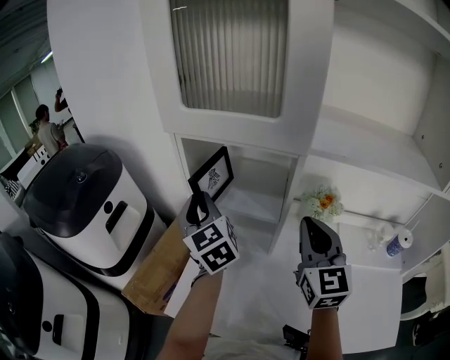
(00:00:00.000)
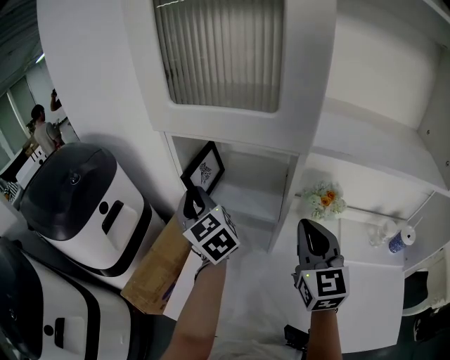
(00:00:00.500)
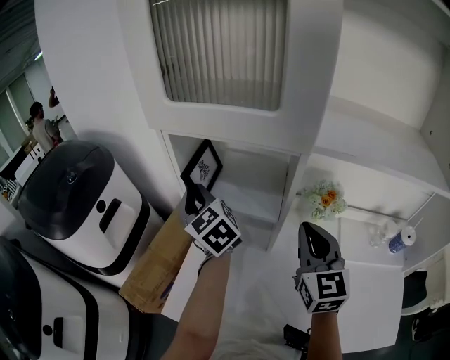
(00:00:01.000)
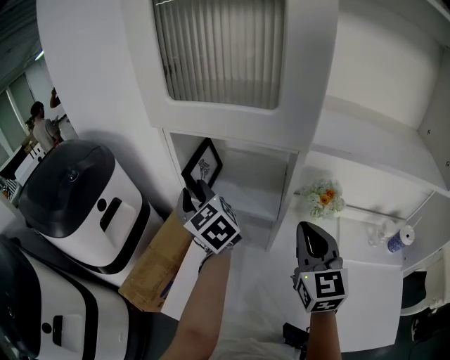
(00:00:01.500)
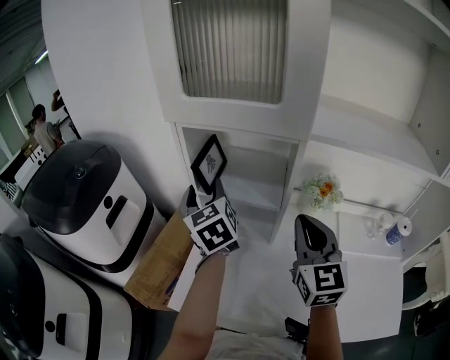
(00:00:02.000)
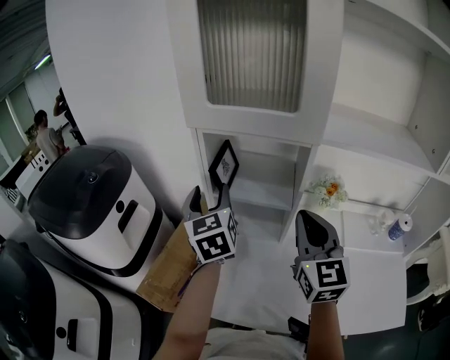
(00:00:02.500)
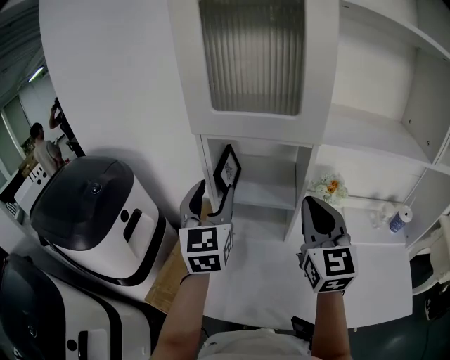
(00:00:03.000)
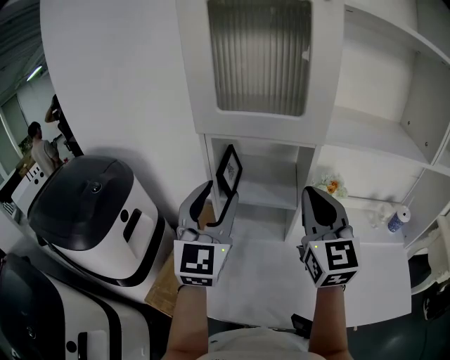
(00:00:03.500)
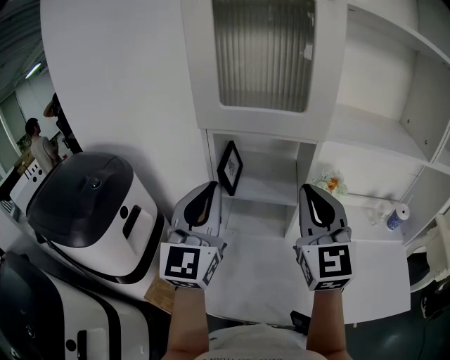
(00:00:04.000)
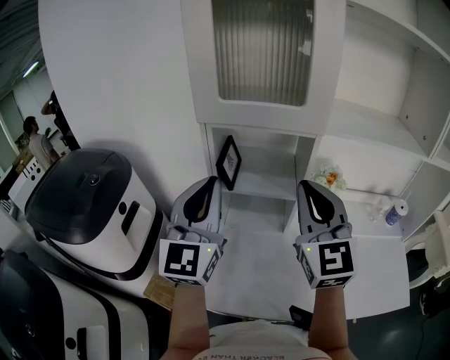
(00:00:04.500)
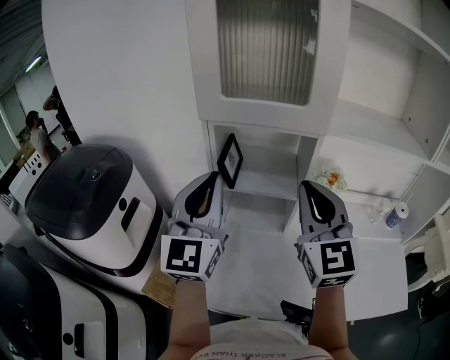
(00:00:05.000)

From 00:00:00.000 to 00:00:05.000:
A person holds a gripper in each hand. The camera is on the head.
From 00:00:00.000 to 00:00:02.500: The left gripper opens. Meanwhile the right gripper travels to the left by roughly 5 cm.
From 00:00:02.500 to 00:00:05.000: The left gripper goes some 15 cm upward and backward, rotates roughly 40 degrees, and closes up; the right gripper is displaced upward by some 10 cm.

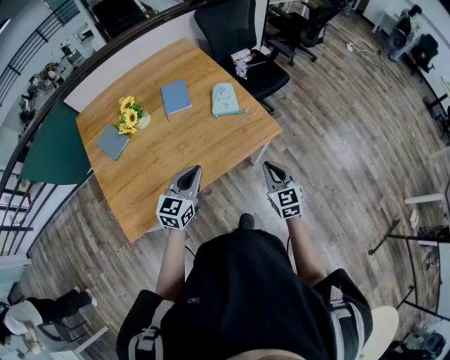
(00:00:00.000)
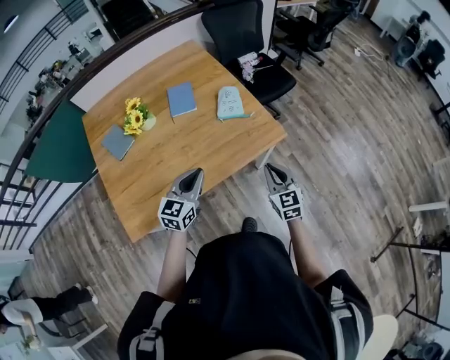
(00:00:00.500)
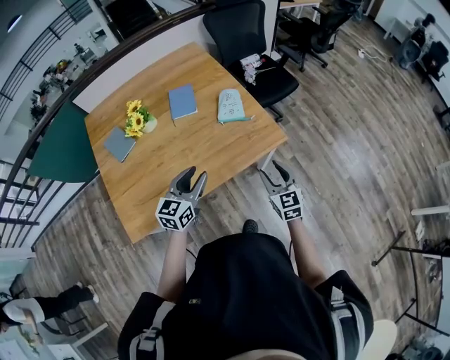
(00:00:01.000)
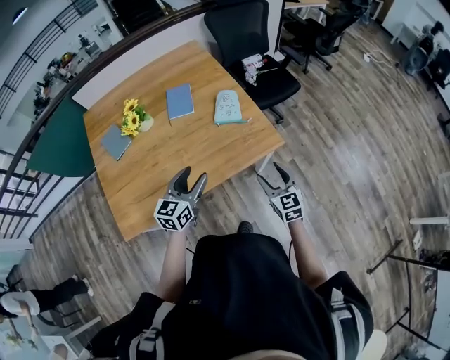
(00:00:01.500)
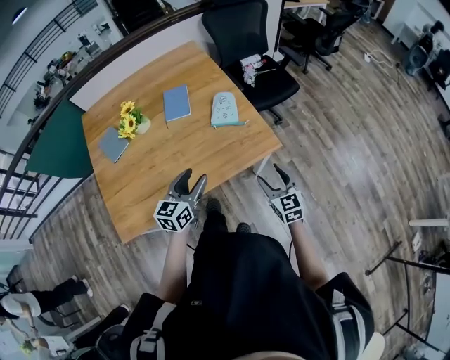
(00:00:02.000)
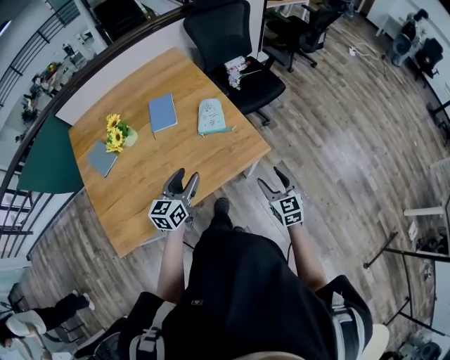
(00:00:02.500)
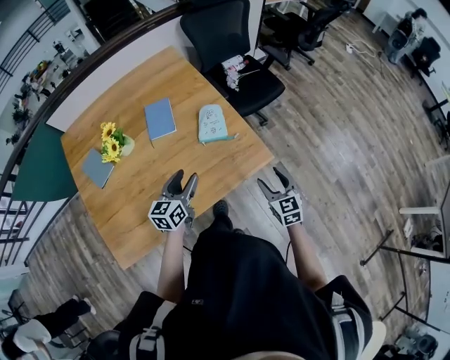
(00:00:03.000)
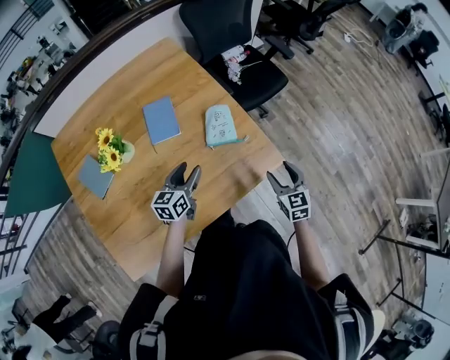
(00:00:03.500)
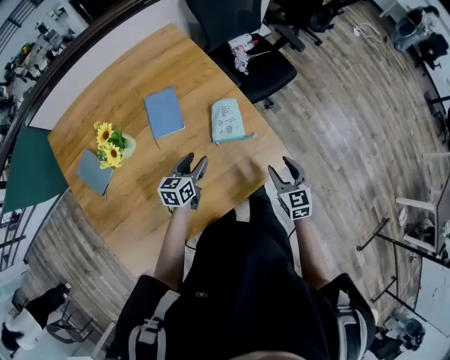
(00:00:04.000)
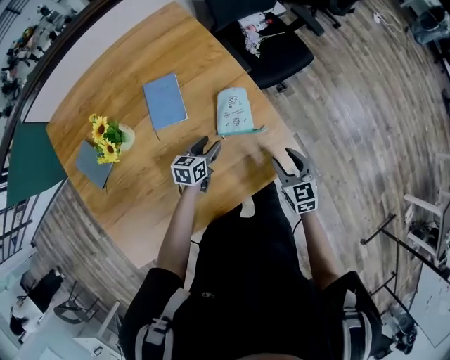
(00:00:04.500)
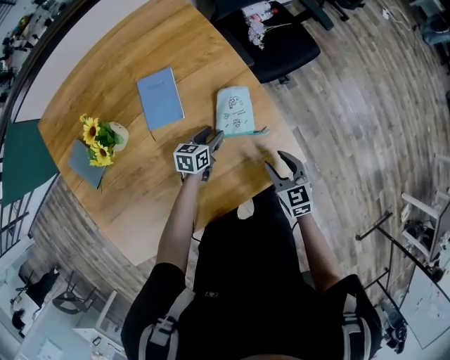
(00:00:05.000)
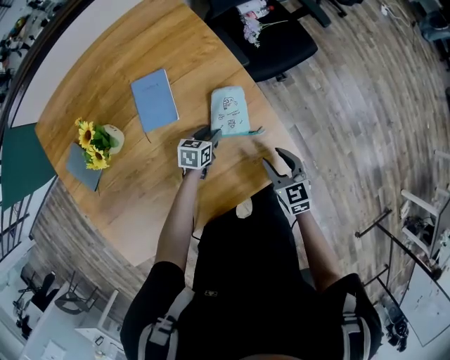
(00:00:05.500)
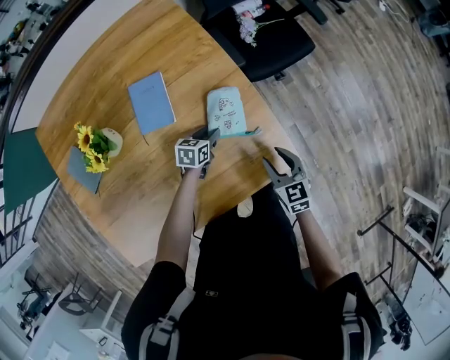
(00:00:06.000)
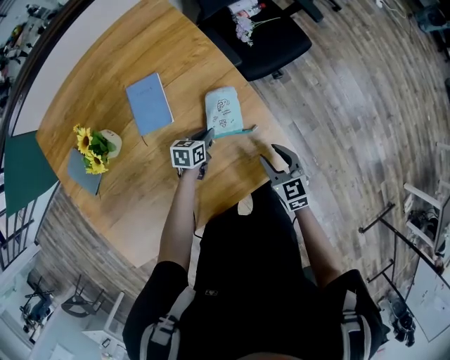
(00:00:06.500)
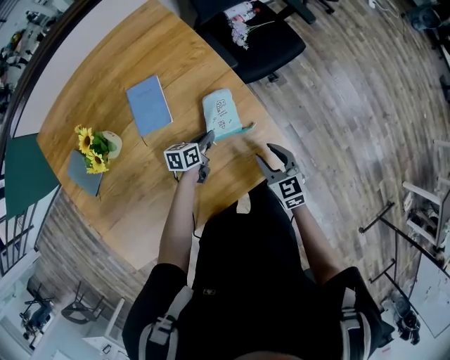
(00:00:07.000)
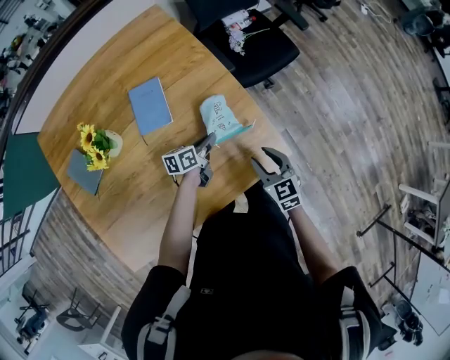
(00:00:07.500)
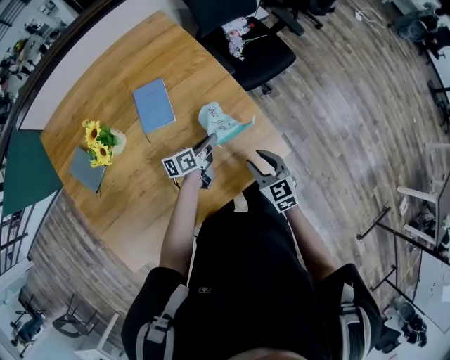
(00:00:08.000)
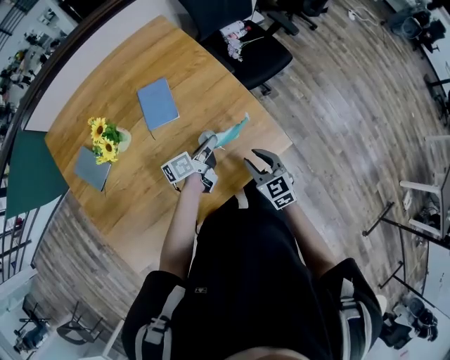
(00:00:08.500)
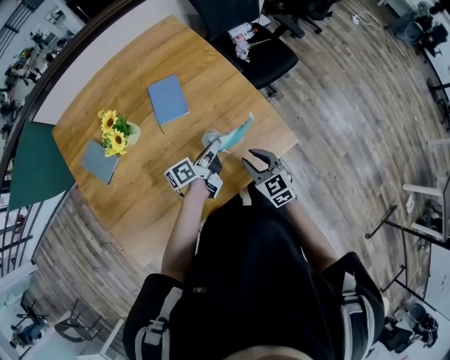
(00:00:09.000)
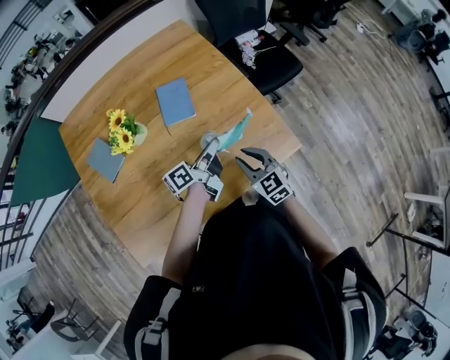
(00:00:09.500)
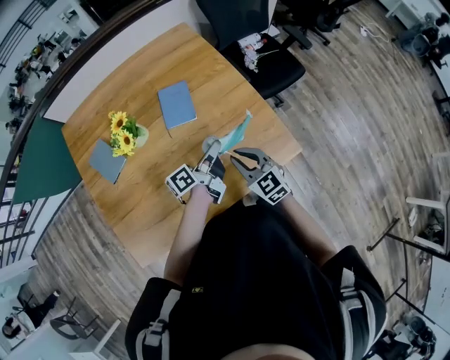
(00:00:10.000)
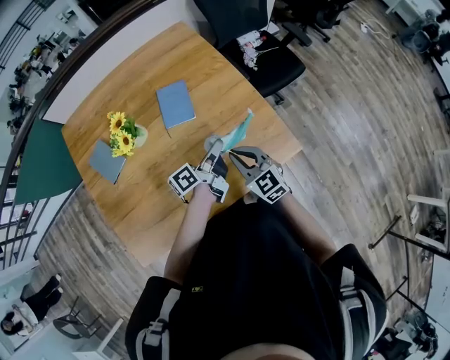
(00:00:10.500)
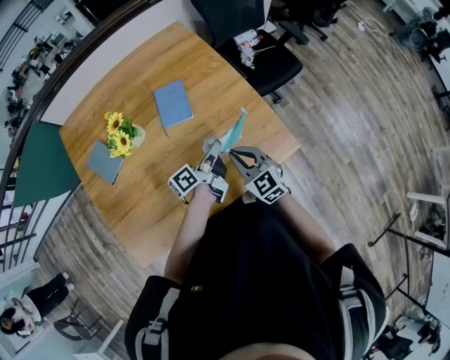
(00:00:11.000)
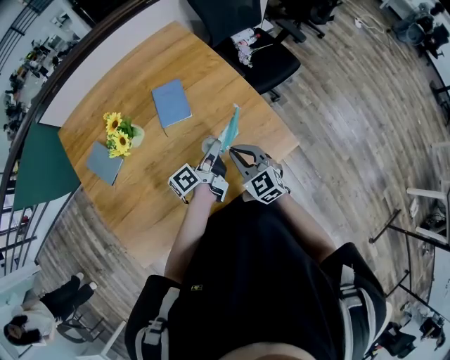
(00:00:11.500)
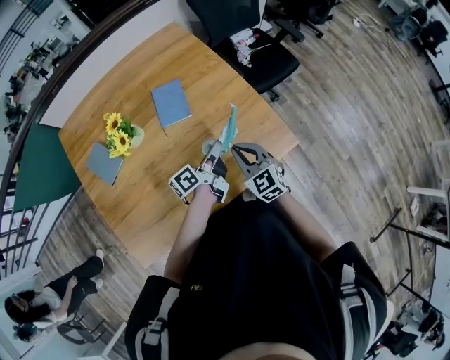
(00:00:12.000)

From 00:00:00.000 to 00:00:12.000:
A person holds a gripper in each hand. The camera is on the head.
From 00:00:00.000 to 00:00:02.000: The left gripper moves roughly 5 cm, and opens. The right gripper moves to the right and forward, approximately 10 cm, and opens up.
From 00:00:02.000 to 00:00:04.000: The right gripper shifts some 15 cm forward; the left gripper goes about 25 cm forward and downward.
From 00:00:04.000 to 00:00:06.000: The right gripper goes some 10 cm downward and forward. The left gripper travels downward, forward and to the right by about 20 cm, and changes its angle by roughly 20 degrees.
From 00:00:06.000 to 00:00:08.000: The right gripper goes approximately 5 cm backward. Meanwhile the left gripper goes about 10 cm upward, turns by roughly 40 degrees, and closes up.
From 00:00:08.000 to 00:00:10.000: The left gripper heads upward, backward and to the left, covering approximately 15 cm, and turns by roughly 30 degrees. The right gripper is displaced to the left and upward by roughly 15 cm, and closes up.
From 00:00:10.000 to 00:00:12.000: The grippers move only a little.

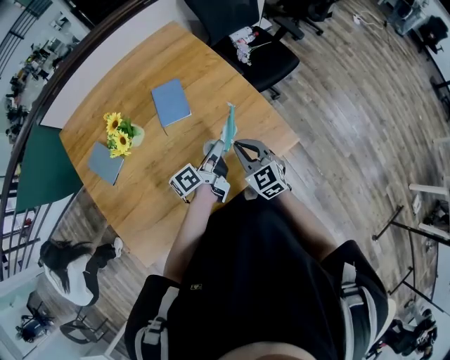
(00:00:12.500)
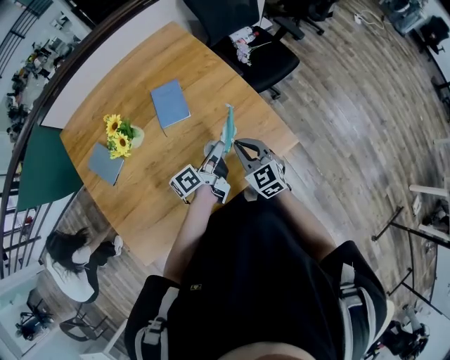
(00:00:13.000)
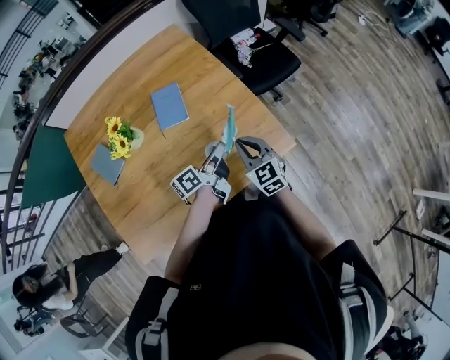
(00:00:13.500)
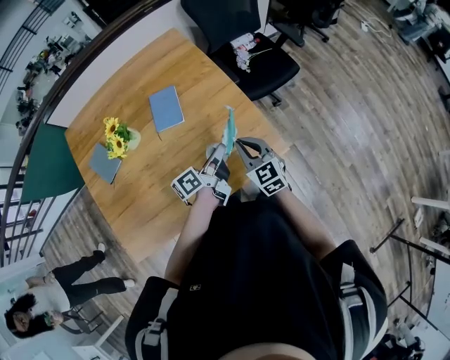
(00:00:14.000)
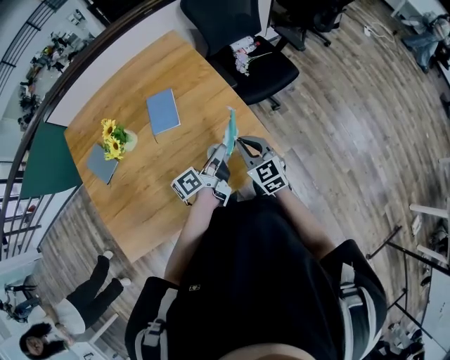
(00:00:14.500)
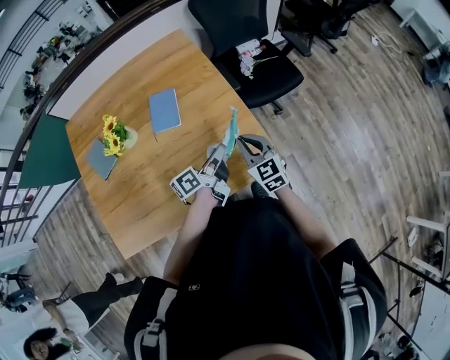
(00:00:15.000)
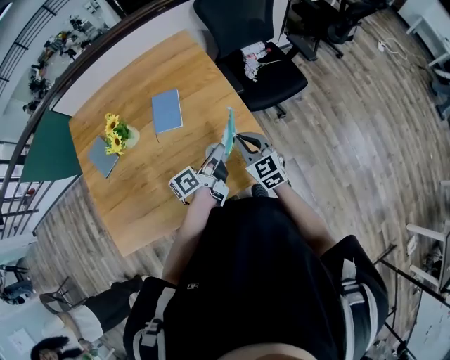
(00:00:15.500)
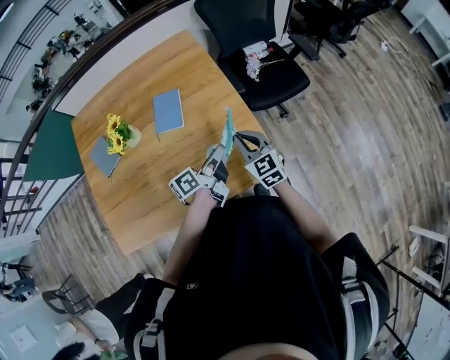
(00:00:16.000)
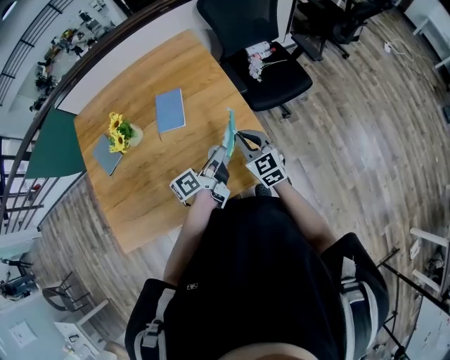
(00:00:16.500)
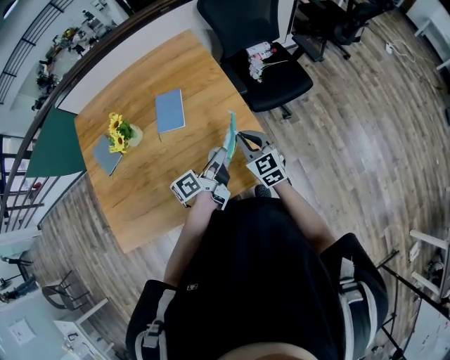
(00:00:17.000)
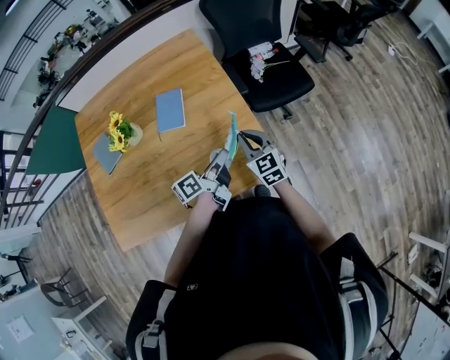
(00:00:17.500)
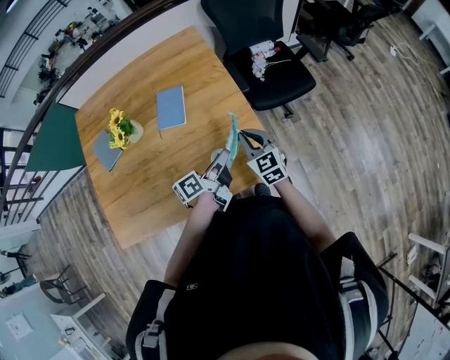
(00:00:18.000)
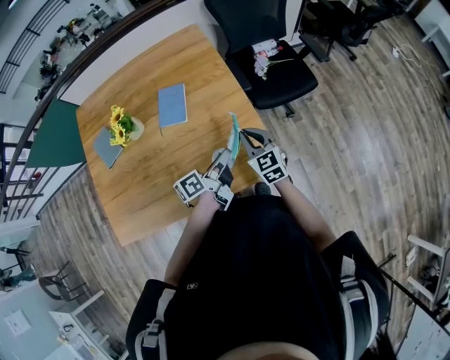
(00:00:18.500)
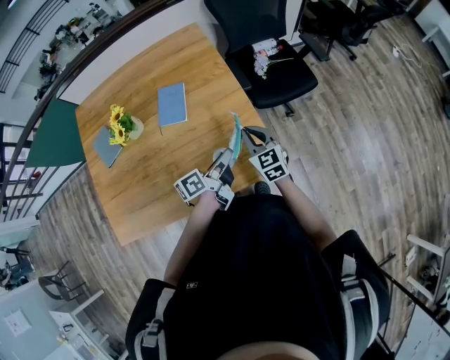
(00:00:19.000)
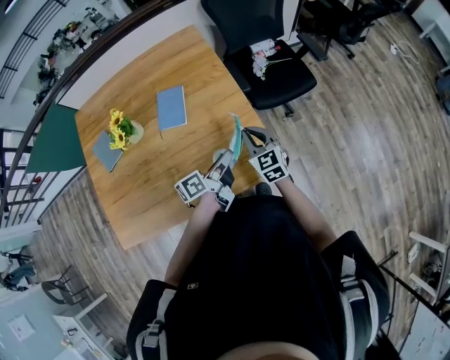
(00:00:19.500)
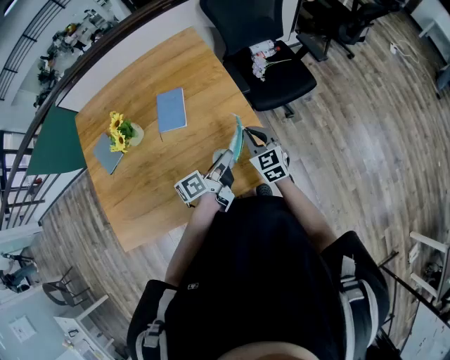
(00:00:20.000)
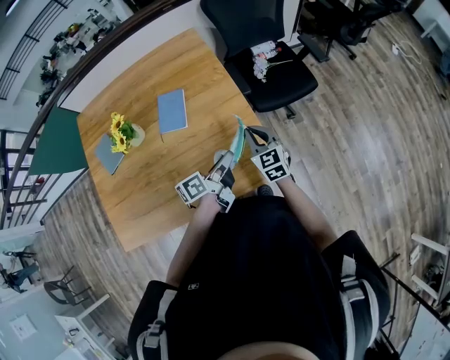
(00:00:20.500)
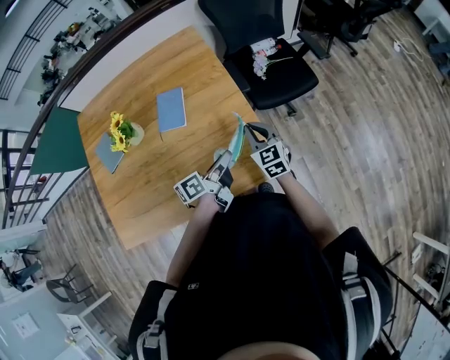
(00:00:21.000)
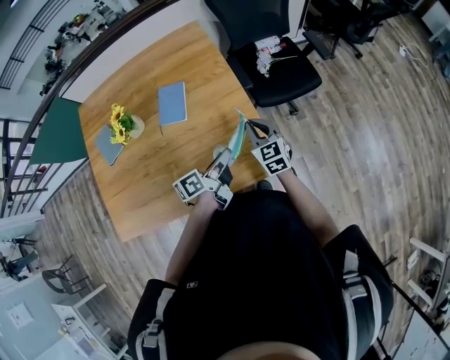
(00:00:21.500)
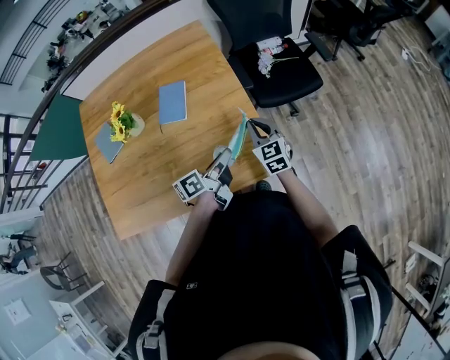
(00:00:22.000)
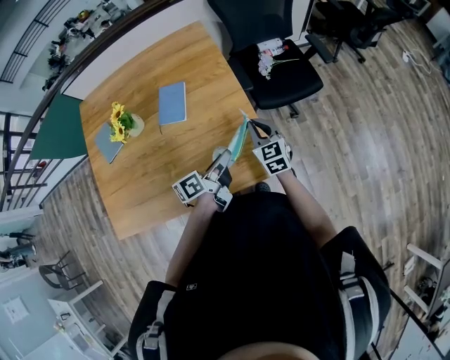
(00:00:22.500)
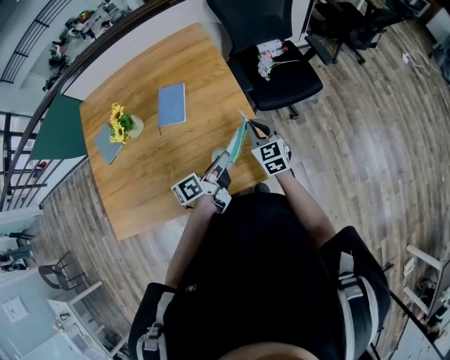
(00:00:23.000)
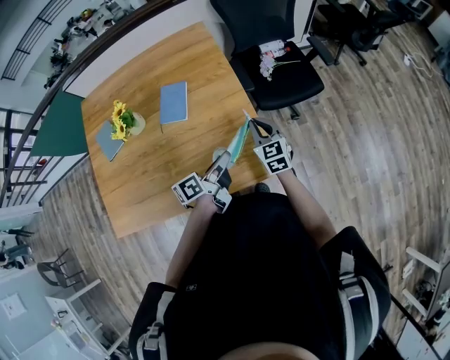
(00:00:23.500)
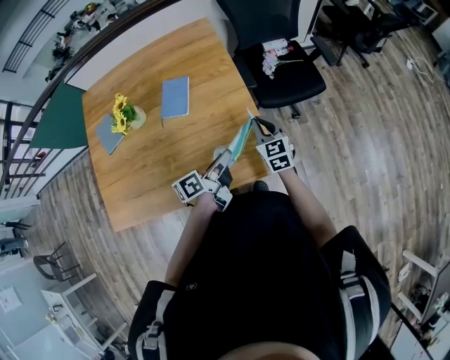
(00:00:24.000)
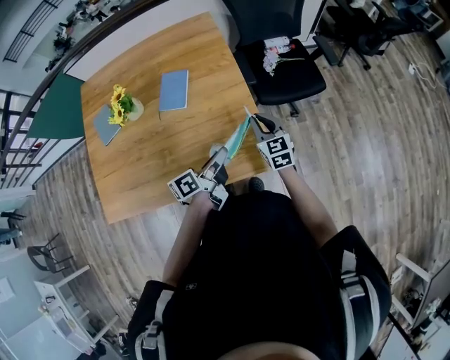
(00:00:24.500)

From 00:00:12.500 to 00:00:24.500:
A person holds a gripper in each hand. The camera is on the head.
From 00:00:12.500 to 00:00:14.500: Both grippers travel together to the right, approximately 10 cm.
From 00:00:14.500 to 00:00:16.500: There are only small adjustments of the grippers.
From 00:00:16.500 to 00:00:20.500: The grippers stay close to where they were, moving slightly.
From 00:00:20.500 to 00:00:24.500: The grippers stay close to where they were, moving slightly.
